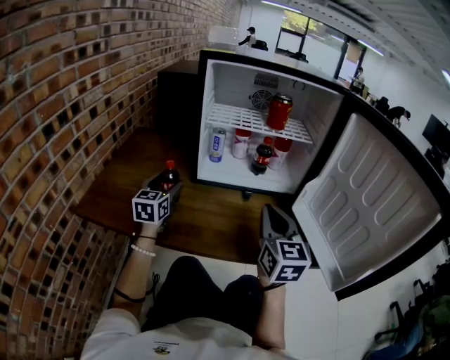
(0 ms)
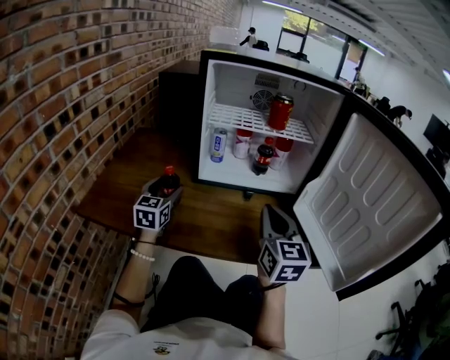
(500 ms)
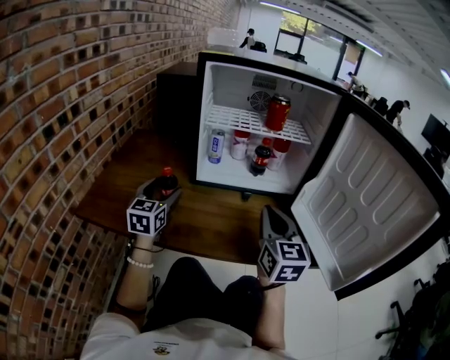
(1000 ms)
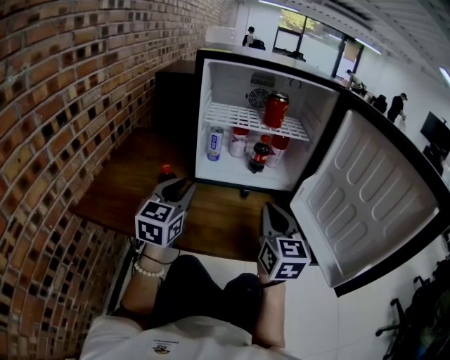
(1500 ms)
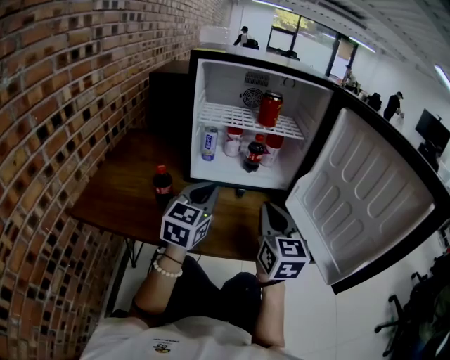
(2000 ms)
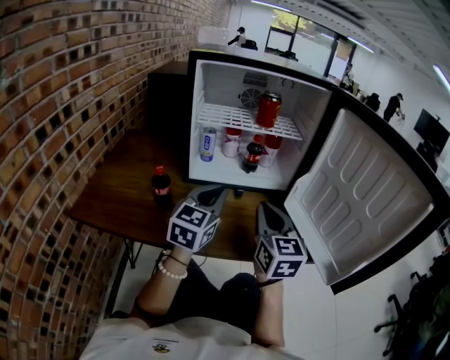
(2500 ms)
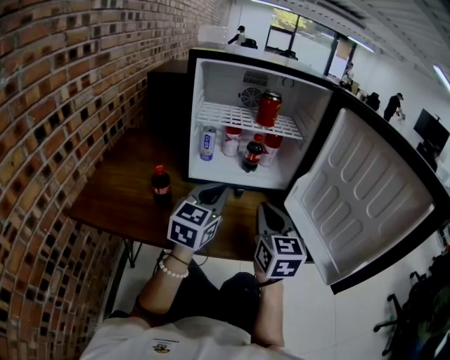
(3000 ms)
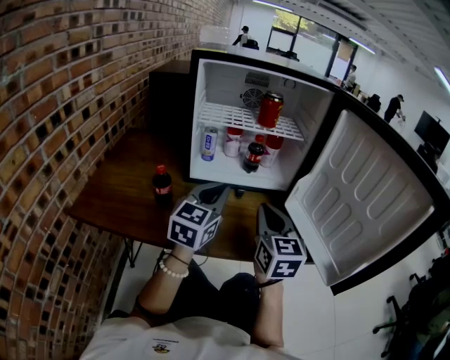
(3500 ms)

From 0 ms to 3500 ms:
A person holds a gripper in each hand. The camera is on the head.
From 0 ms to 2000 ms: The left gripper shifts about 20 cm to the right, upward and backward, and closes its fingers.
From 2000 ms to 3500 ms: The grippers move only a little.

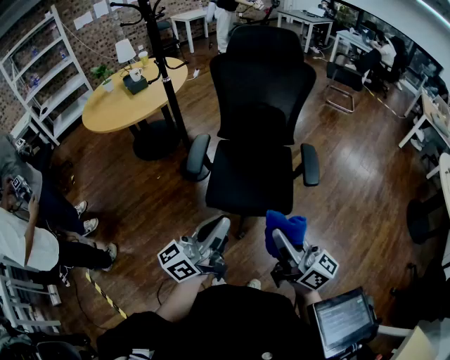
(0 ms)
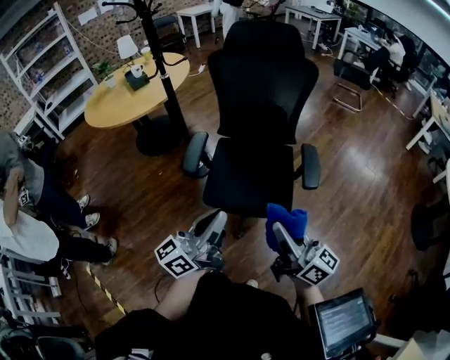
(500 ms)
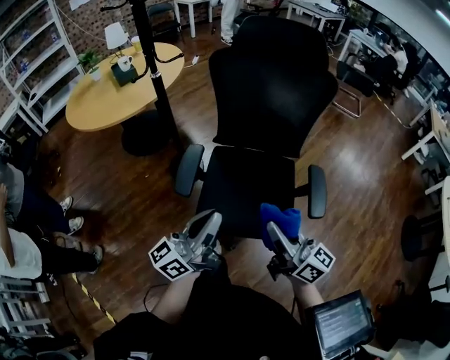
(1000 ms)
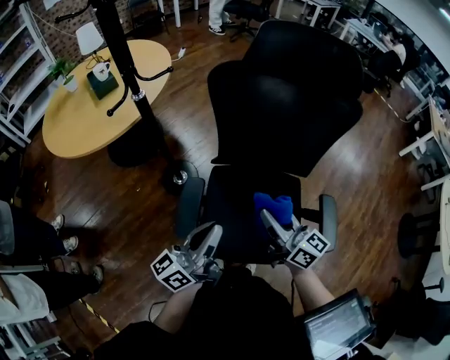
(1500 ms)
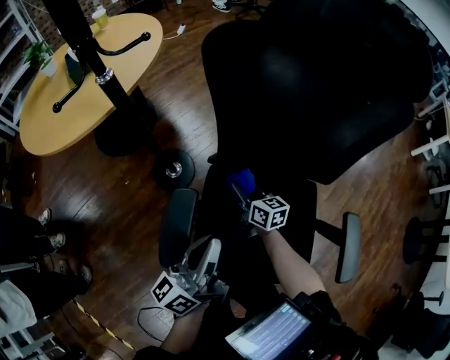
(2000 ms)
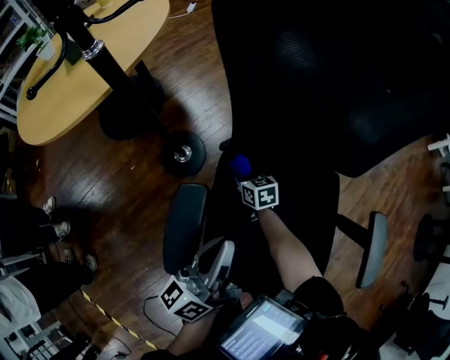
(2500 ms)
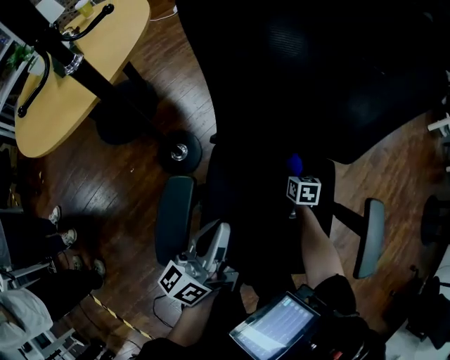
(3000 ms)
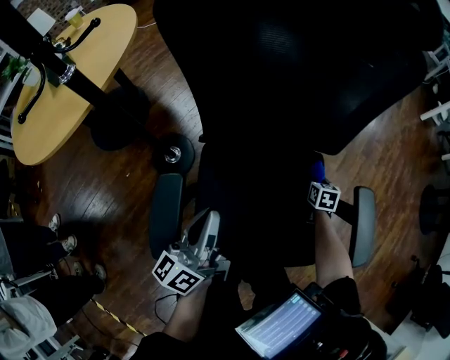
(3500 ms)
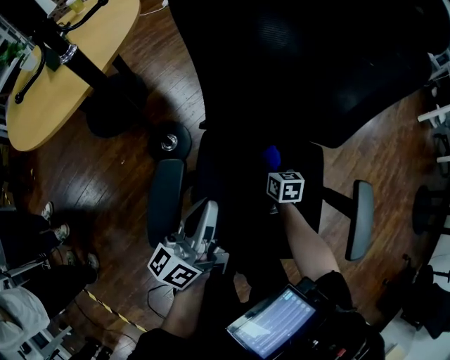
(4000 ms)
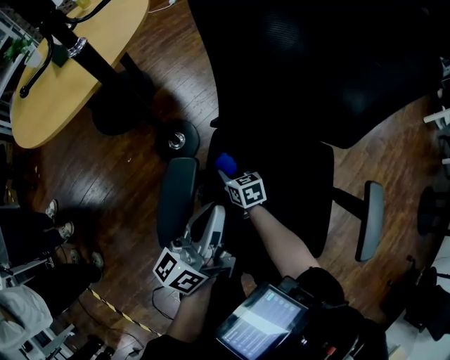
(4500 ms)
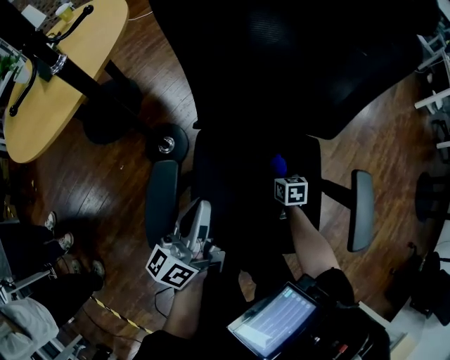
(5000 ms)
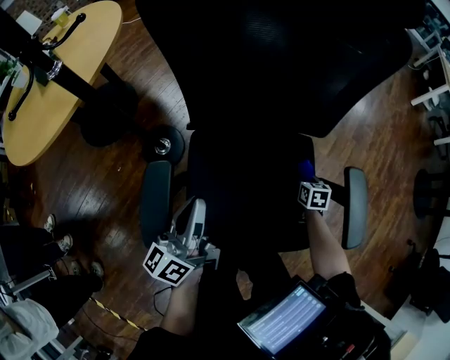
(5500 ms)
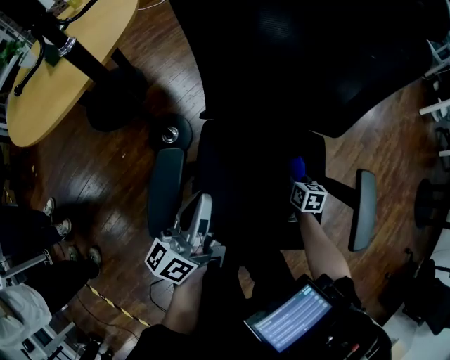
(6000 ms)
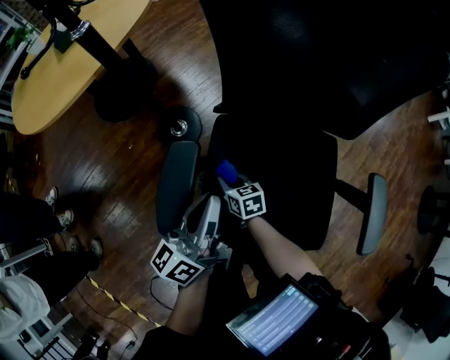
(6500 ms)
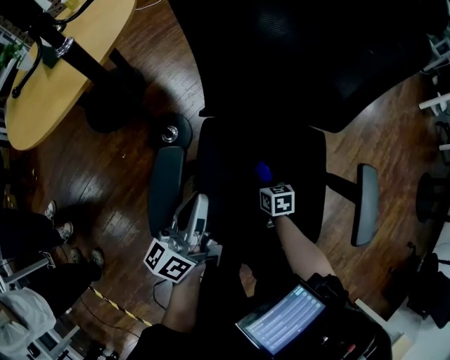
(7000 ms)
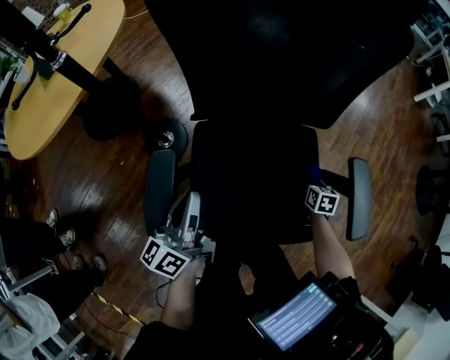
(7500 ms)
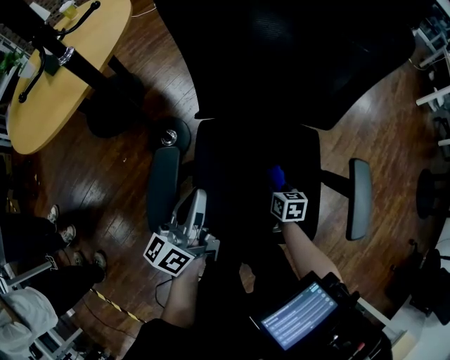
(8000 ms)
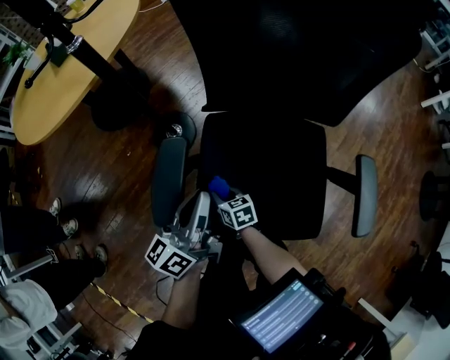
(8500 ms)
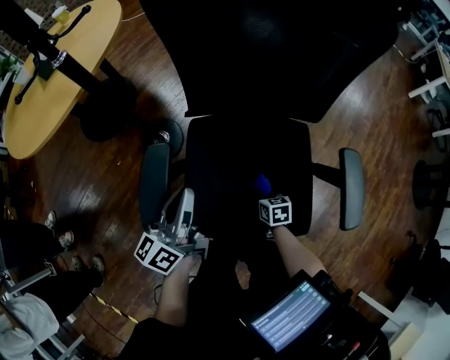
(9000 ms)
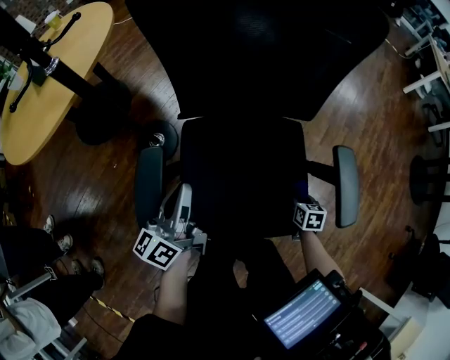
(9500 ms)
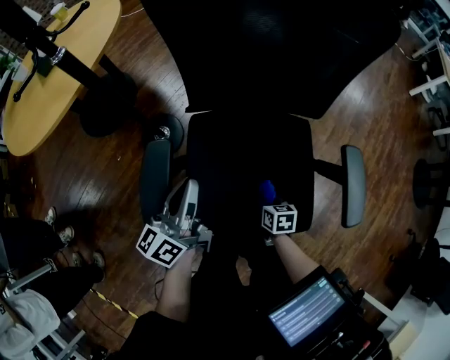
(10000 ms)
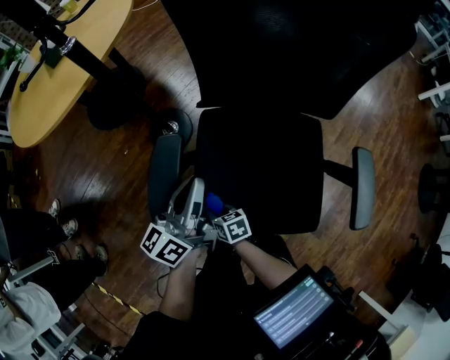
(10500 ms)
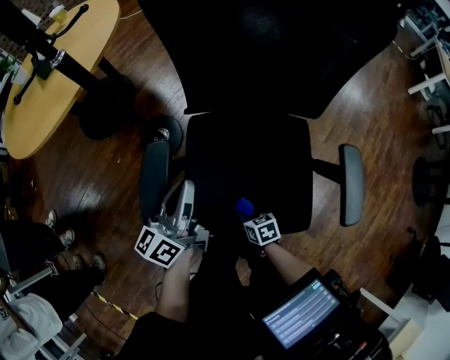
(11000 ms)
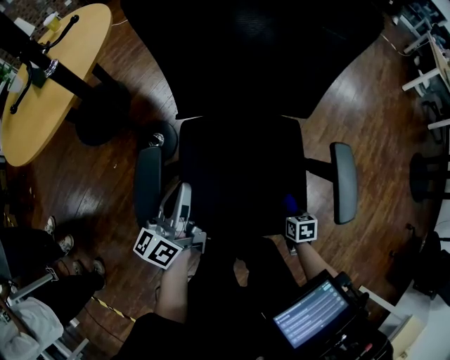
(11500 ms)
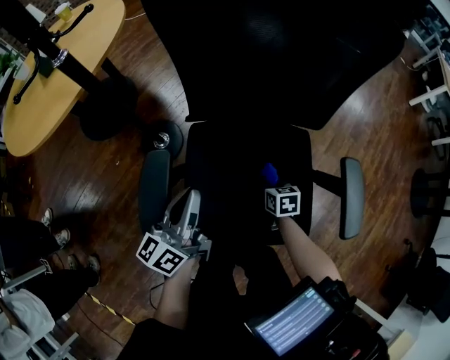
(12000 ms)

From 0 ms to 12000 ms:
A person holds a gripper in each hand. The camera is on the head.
From 0 ms to 2000 ms: The pair of grippers is taken forward, approximately 50 cm. The left gripper travels downward by approximately 20 cm, and swivels about 20 degrees; the right gripper travels downward by roughly 40 cm, and tips its fingers downward by approximately 40 degrees.
From 2000 ms to 4000 ms: The left gripper moves downward, roughly 5 cm, while the right gripper swings left and right, about 35 cm each way, with 2 reversals, and changes its angle by roughly 30 degrees.
From 4000 ms to 6000 ms: The right gripper goes left and right, about 35 cm each way, reversing 2 times.
From 6000 ms to 8000 ms: The right gripper swings left and right, about 40 cm each way, with 2 reversals.
From 8000 ms to 10000 ms: The right gripper swings left and right, roughly 35 cm each way, with 2 reversals.
From 10000 ms to 12000 ms: The right gripper moves left and right over approximately 35 cm, changing direction 2 times.

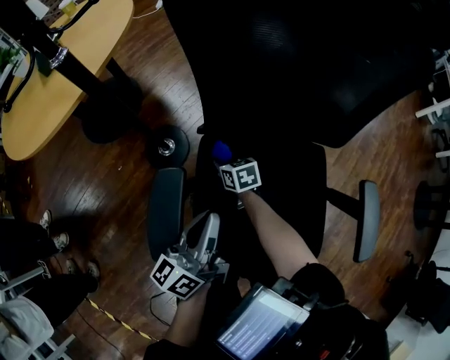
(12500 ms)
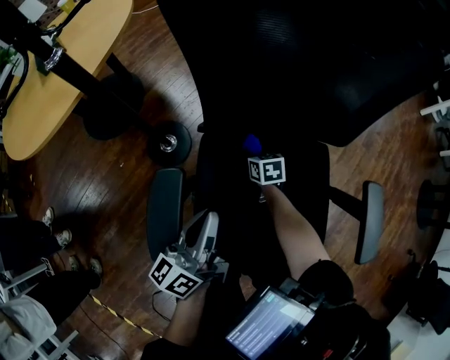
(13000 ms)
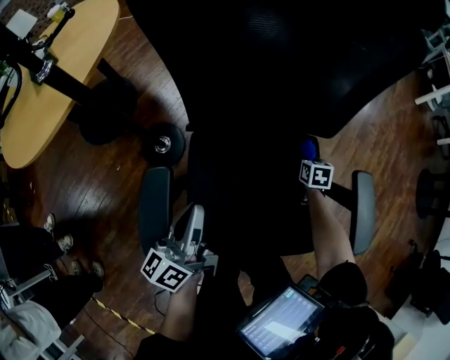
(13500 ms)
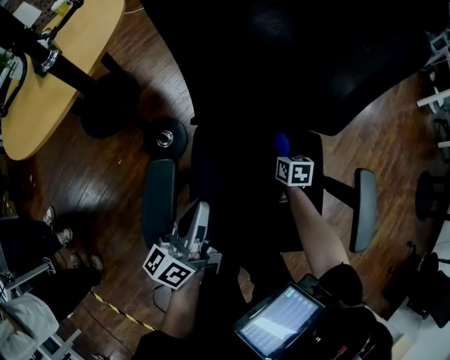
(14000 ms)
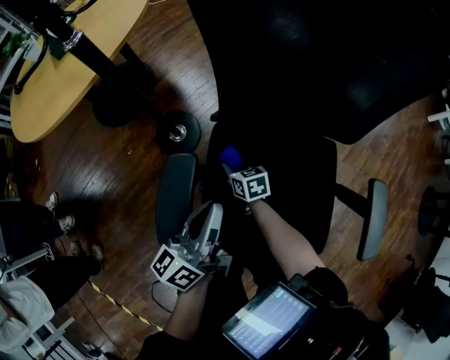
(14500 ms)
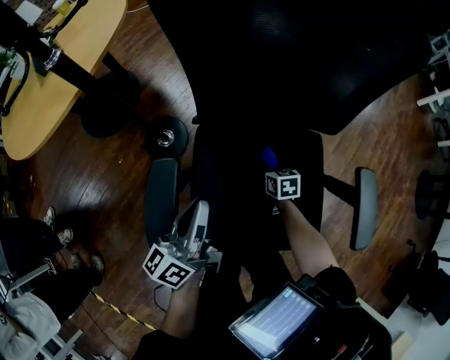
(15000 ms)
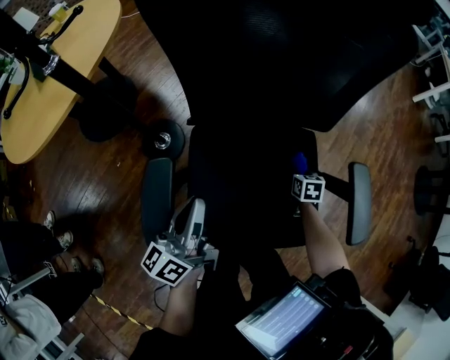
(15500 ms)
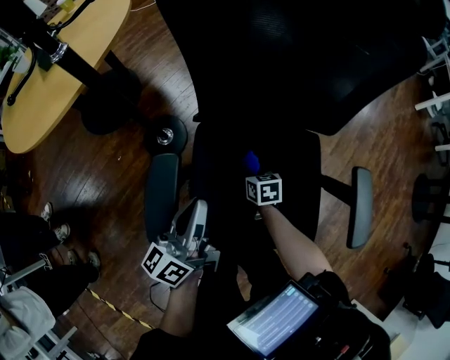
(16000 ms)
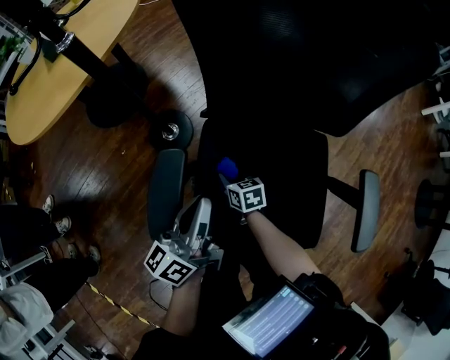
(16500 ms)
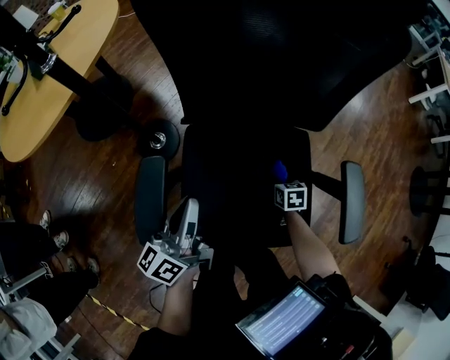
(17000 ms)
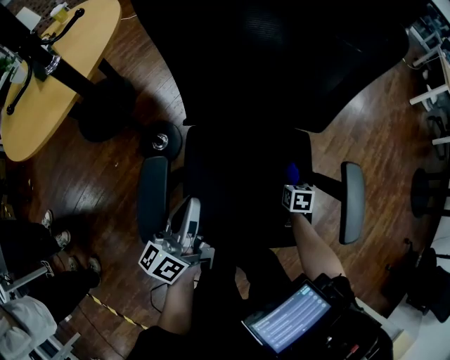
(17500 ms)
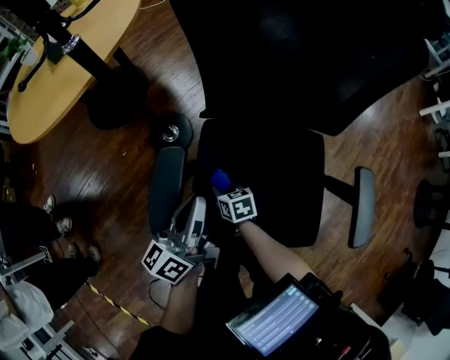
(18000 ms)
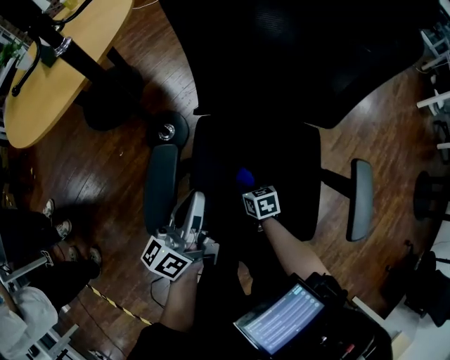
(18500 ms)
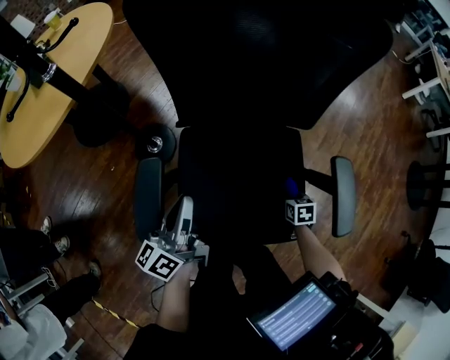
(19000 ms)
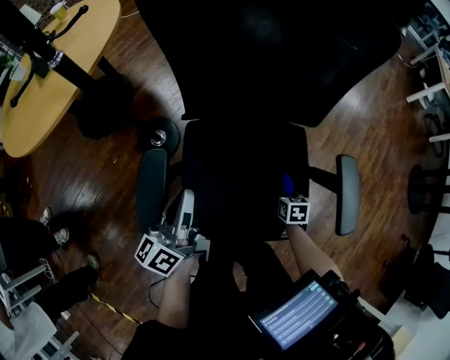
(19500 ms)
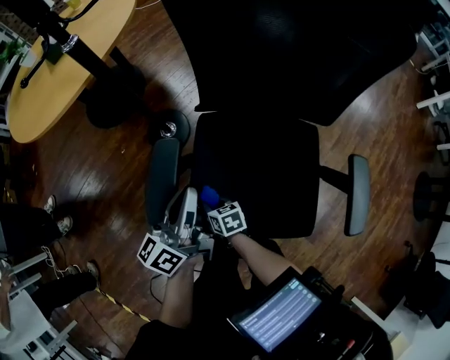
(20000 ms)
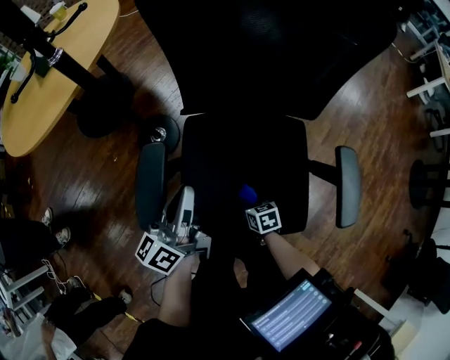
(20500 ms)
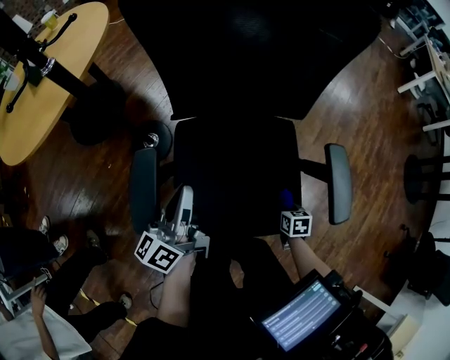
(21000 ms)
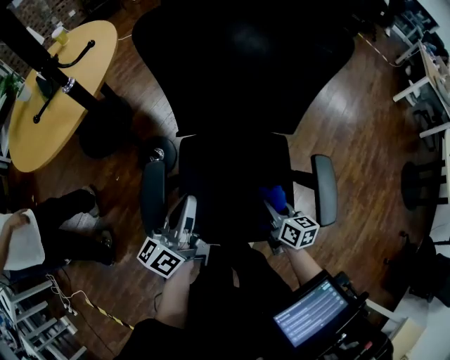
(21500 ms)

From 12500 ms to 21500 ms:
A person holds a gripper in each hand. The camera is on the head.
From 12500 ms to 14500 ms: The right gripper is displaced backward by approximately 5 cm, and goes to the right and returns, some 35 cm each way.
From 14500 ms to 17000 ms: The right gripper moves left and right over about 30 cm, changing direction 2 times, and swivels roughly 30 degrees.
From 17000 ms to 19500 ms: The right gripper goes left and right, approximately 30 cm each way, reversing 2 times.
From 19500 ms to 21500 ms: The right gripper goes left and right, some 35 cm each way, reversing 2 times, and points its fingers about 30 degrees further upward; the left gripper shifts some 5 cm upward.

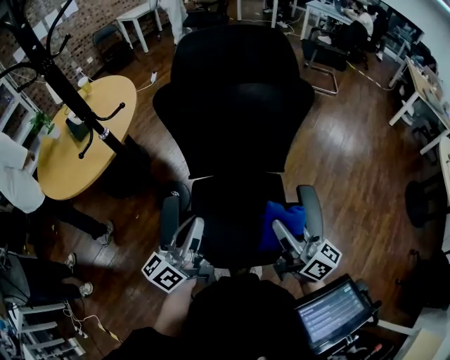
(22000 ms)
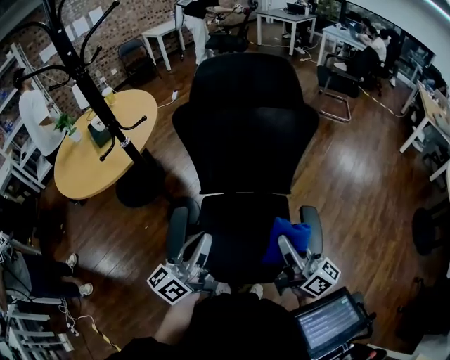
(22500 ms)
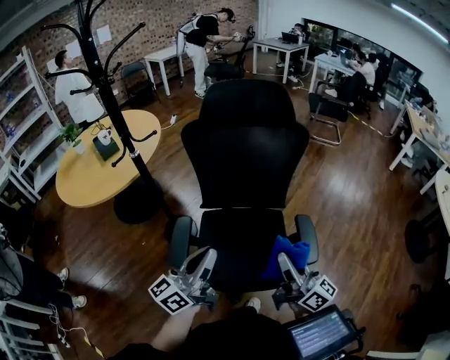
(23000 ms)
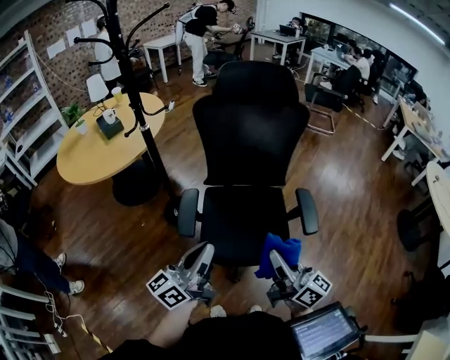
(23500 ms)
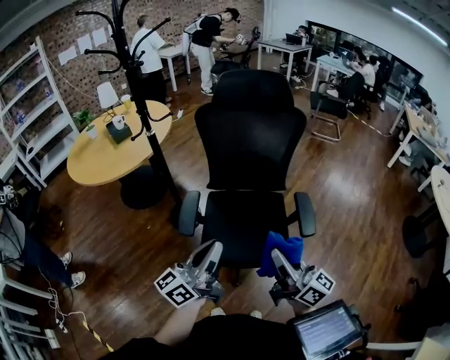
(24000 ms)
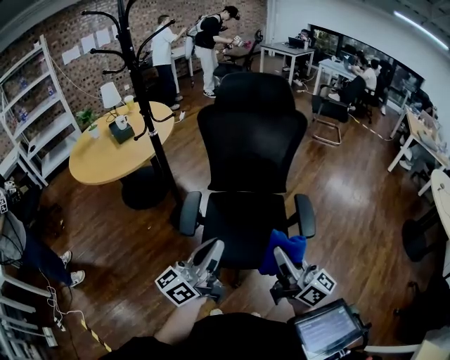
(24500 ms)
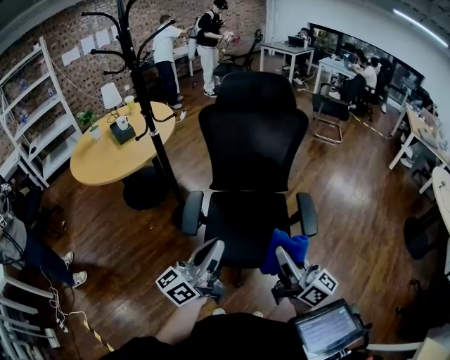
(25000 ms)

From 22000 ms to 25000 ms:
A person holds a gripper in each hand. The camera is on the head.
From 22000 ms to 23500 ms: Both grippers move backward, approximately 20 cm.
From 23500 ms to 25000 ms: The left gripper ends up about 5 cm from where it was; the right gripper ends up about 5 cm from where it was.
